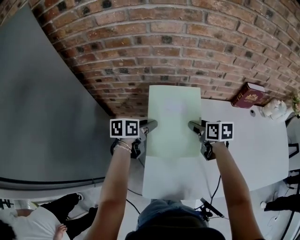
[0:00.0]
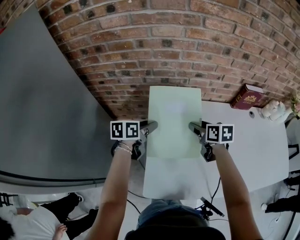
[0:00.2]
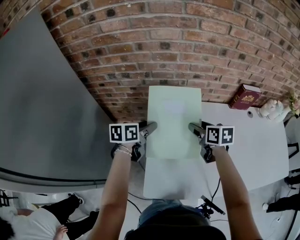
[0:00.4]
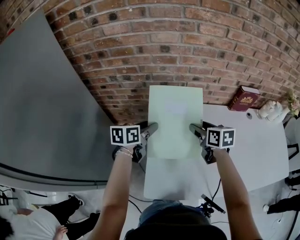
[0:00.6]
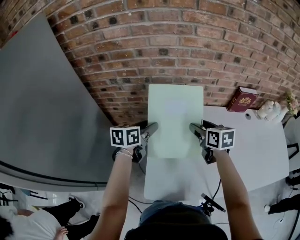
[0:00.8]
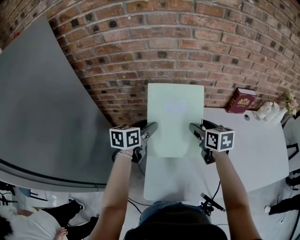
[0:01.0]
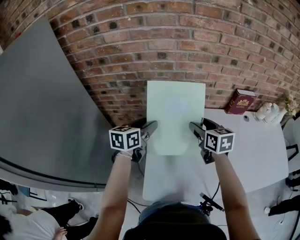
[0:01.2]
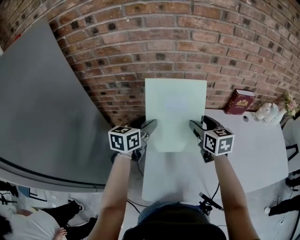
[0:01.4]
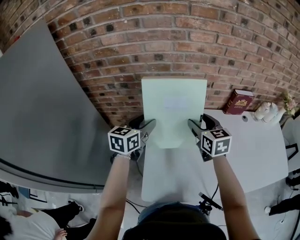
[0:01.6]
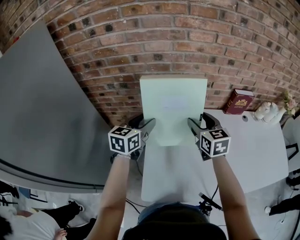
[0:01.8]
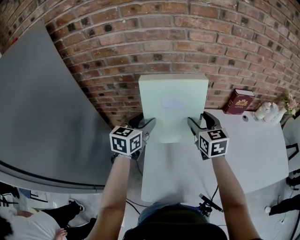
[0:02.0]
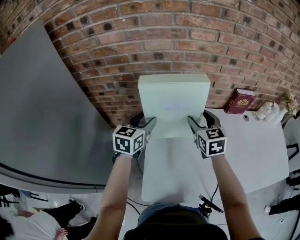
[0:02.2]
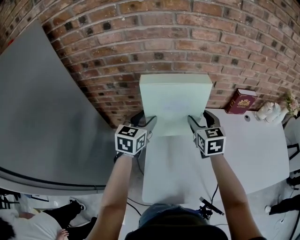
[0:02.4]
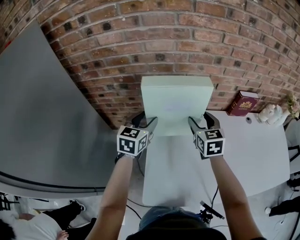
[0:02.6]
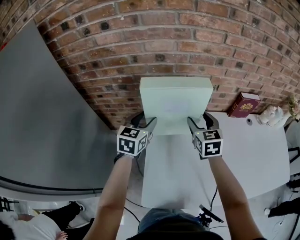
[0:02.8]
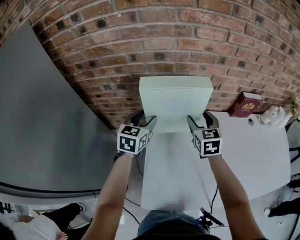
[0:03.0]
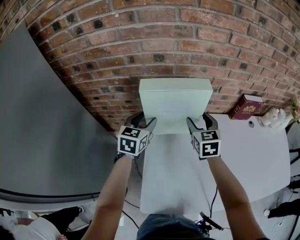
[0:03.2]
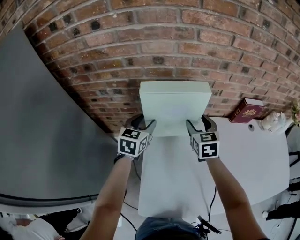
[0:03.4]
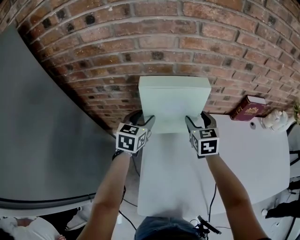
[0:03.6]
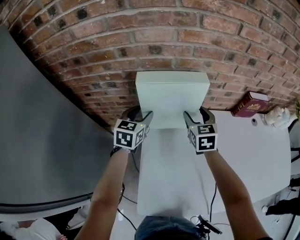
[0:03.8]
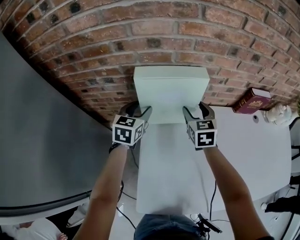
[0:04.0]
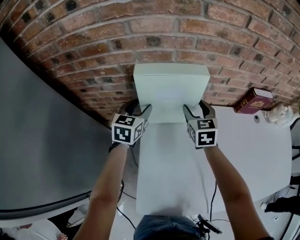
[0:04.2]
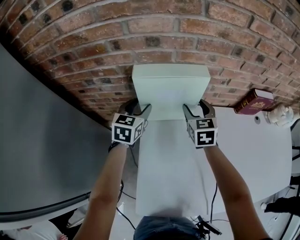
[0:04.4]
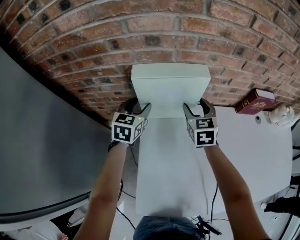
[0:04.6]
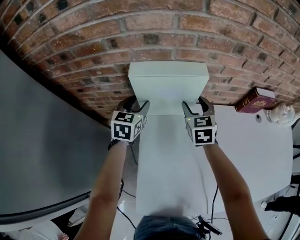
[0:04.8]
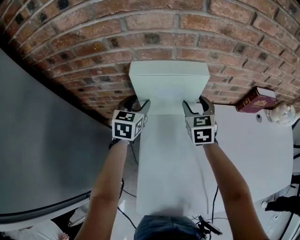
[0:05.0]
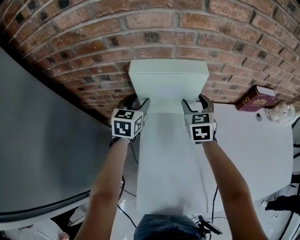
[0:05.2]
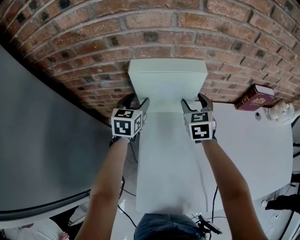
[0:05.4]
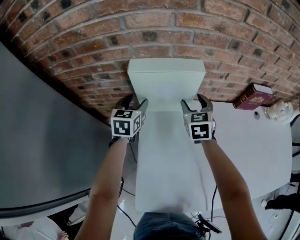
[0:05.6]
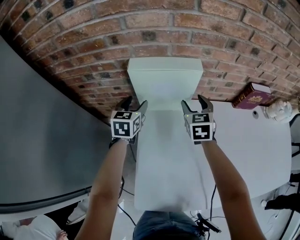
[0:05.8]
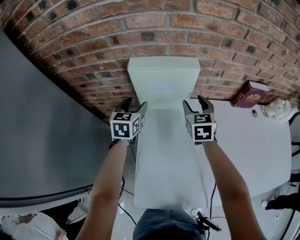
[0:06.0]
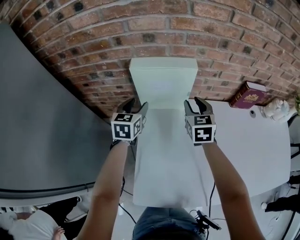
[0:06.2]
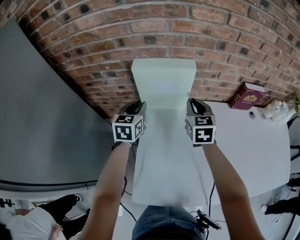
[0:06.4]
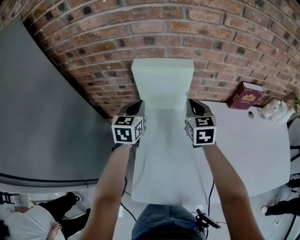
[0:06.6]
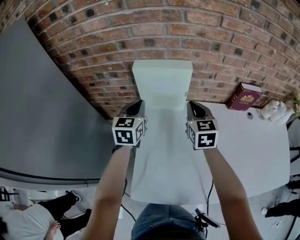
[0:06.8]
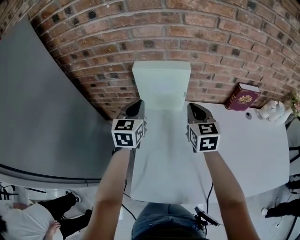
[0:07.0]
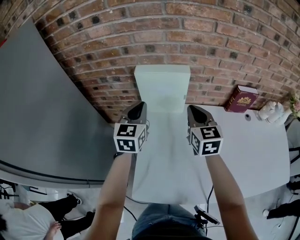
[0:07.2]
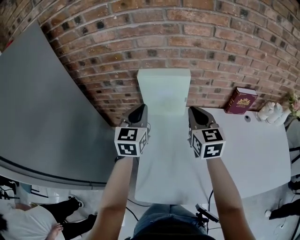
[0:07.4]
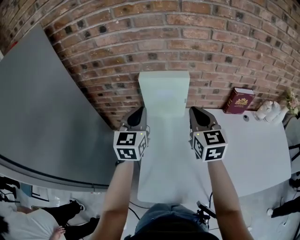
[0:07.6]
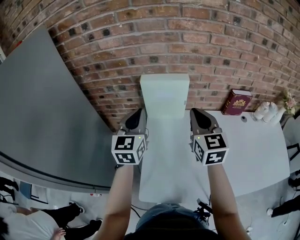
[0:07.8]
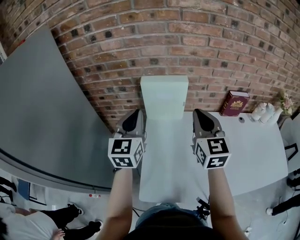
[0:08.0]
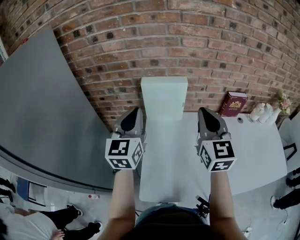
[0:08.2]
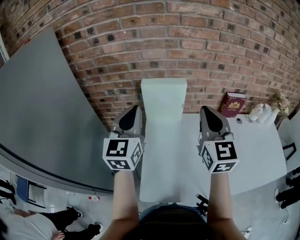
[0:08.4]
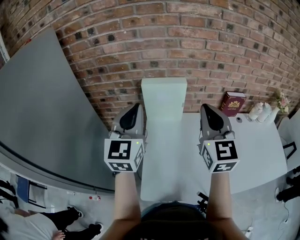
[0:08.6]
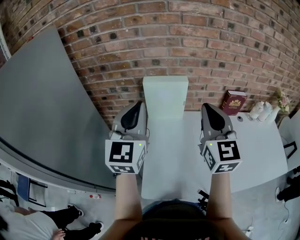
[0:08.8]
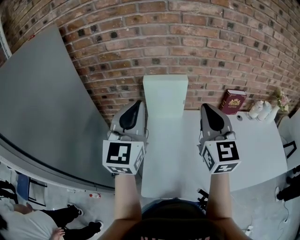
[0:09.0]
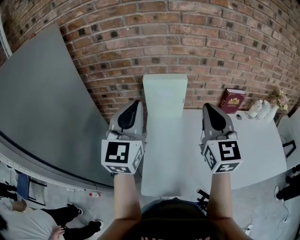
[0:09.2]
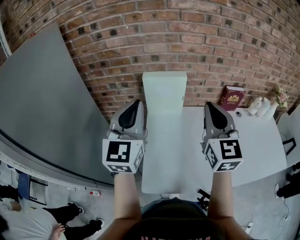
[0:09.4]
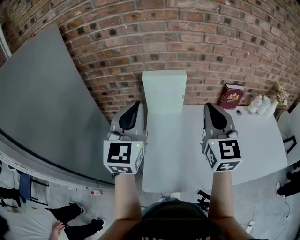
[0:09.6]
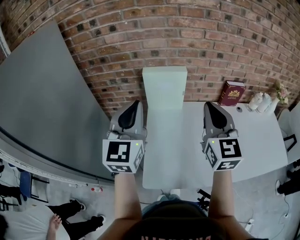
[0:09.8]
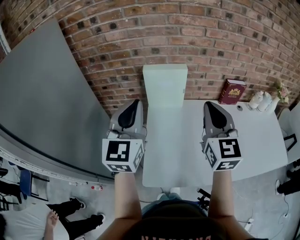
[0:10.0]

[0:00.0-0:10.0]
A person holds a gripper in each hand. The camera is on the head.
0:00.0 to 0:01.4: The two grippers go about 10 cm upward. The right gripper changes its angle by about 30 degrees. The left gripper changes its angle by roughly 30 degrees.
0:01.4 to 0:02.8: The grippers both shift forward by approximately 5 cm.
0:02.8 to 0:04.2: The two grippers go about 15 cm forward and downward.
0:04.2 to 0:05.8: The grippers move only a little.
0:05.8 to 0:07.2: Both grippers travel together upward and backward, some 15 cm. The left gripper closes; the right gripper closes up.
0:07.2 to 0:08.6: Both grippers travel together upward and backward, about 20 cm. The right gripper swivels some 20 degrees.
0:08.6 to 0:10.0: The left gripper moves backward, some 5 cm. The right gripper shifts by roughly 5 cm.

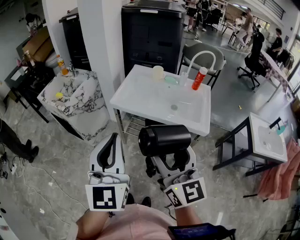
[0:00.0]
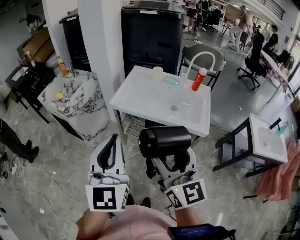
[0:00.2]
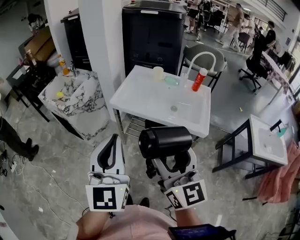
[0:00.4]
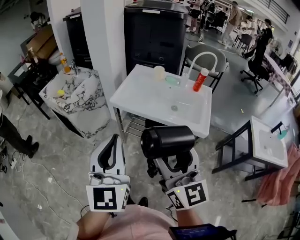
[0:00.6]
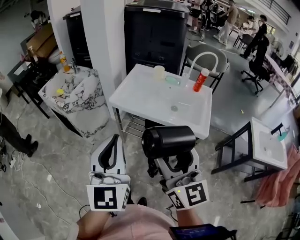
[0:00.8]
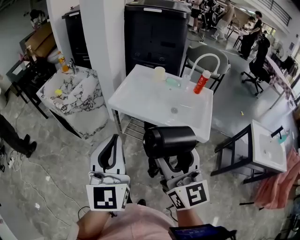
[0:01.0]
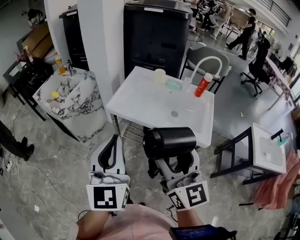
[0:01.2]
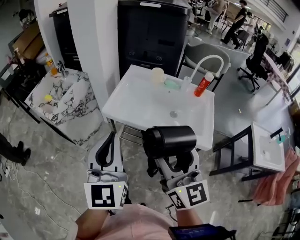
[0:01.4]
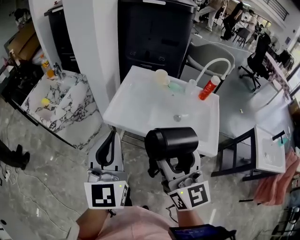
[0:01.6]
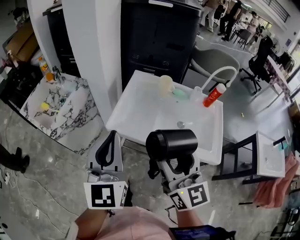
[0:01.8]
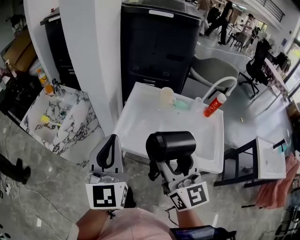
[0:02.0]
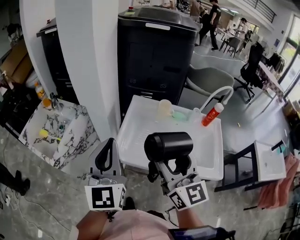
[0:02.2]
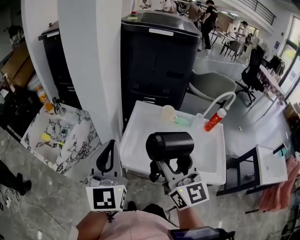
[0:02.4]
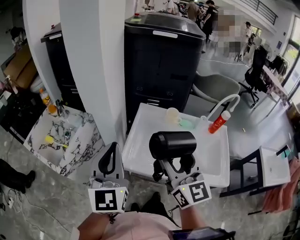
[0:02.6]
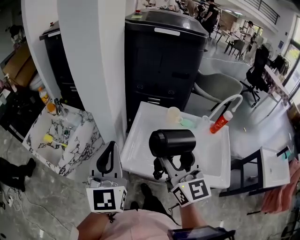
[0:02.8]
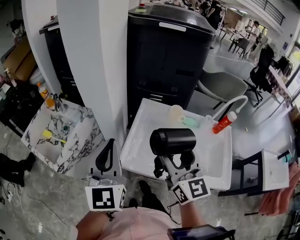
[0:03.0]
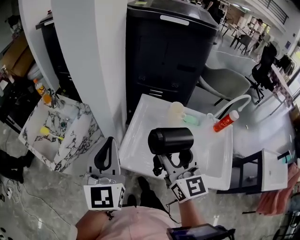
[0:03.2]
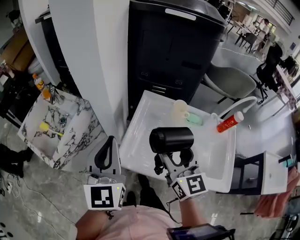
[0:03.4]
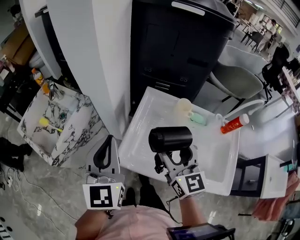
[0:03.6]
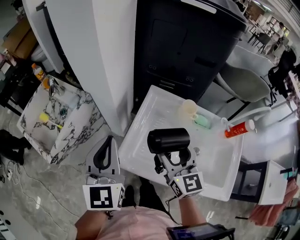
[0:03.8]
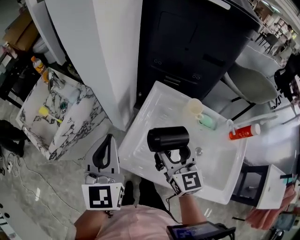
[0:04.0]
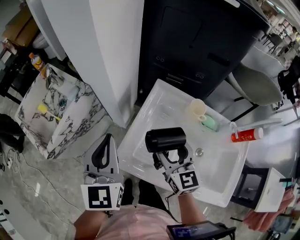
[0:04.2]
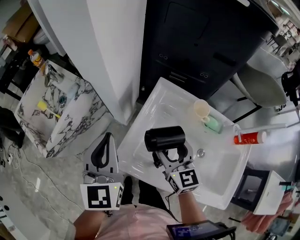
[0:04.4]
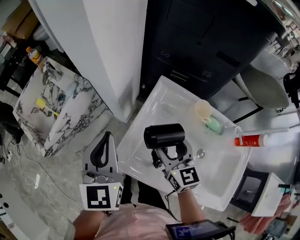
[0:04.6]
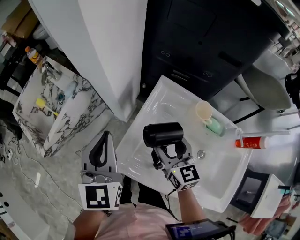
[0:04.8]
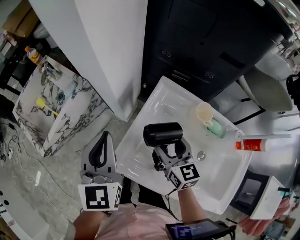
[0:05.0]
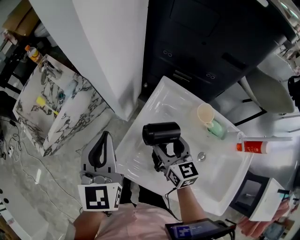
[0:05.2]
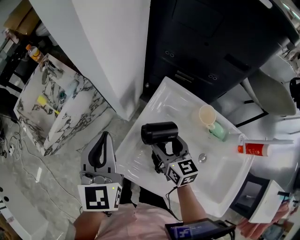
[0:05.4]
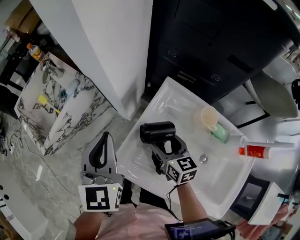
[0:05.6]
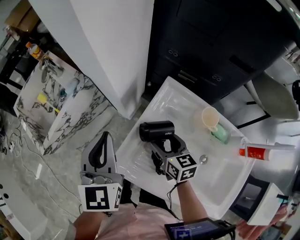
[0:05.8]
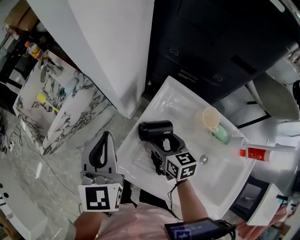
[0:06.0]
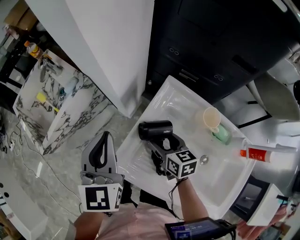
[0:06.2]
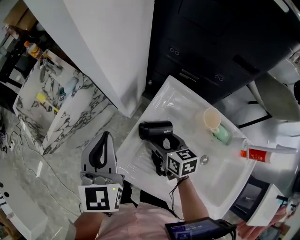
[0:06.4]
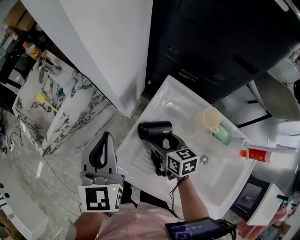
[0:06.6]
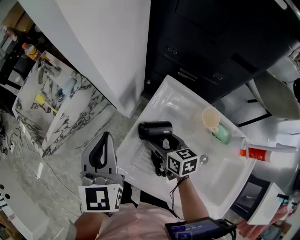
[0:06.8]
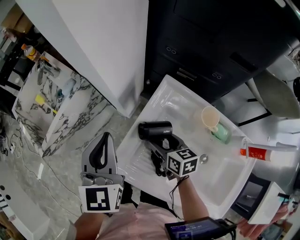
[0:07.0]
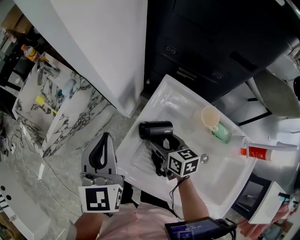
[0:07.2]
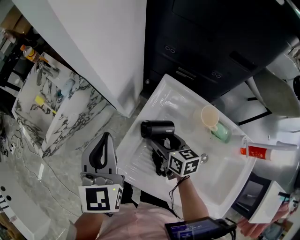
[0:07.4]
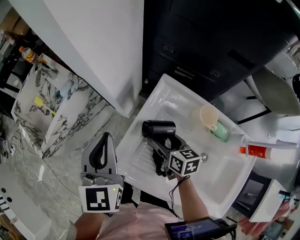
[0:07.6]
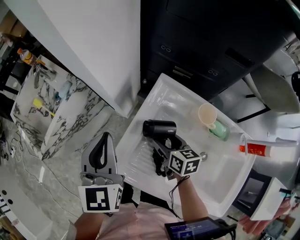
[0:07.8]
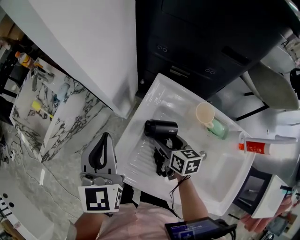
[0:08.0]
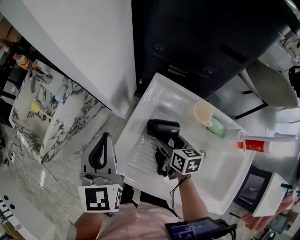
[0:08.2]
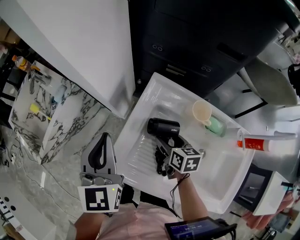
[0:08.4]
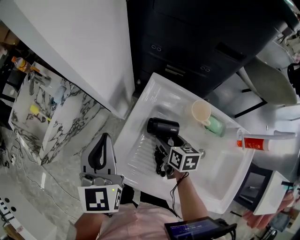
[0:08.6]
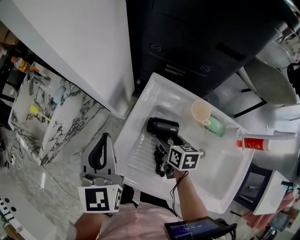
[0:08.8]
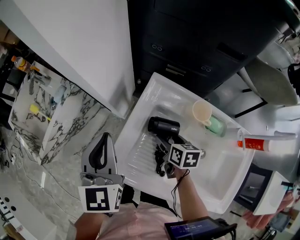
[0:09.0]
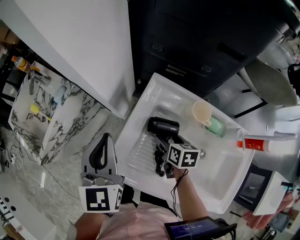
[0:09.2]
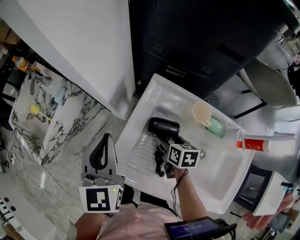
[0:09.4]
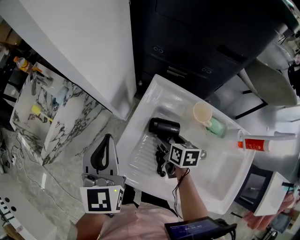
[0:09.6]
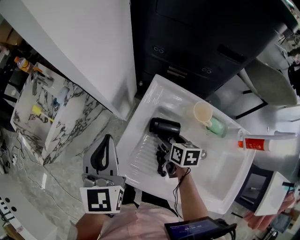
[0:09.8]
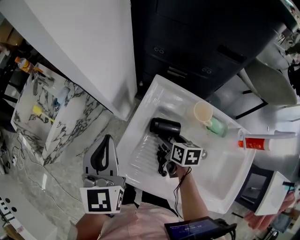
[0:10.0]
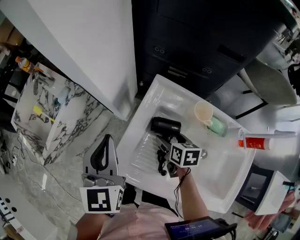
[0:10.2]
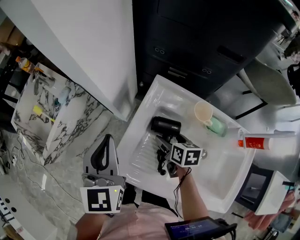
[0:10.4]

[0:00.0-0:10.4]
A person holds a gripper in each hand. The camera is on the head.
0:00.0 to 0:01.4: Both grippers move forward, approximately 10 cm.
0:01.4 to 0:03.0: Both grippers move forward, roughly 30 cm.
0:03.0 to 0:04.4: The right gripper goes about 25 cm downward and forward, and changes its angle by roughly 30 degrees. The left gripper moves downward and forward, approximately 15 cm.
0:04.4 to 0:06.0: The right gripper moves downward and forward, approximately 10 cm, and turns by roughly 30 degrees.
0:06.0 to 0:07.4: The grippers move only a little.
0:07.4 to 0:09.0: The right gripper goes about 5 cm to the right.
0:09.0 to 0:10.4: The grippers make only small movements.

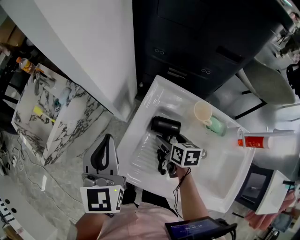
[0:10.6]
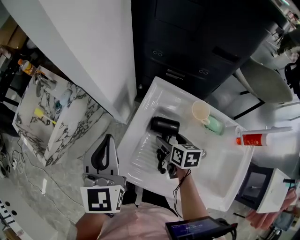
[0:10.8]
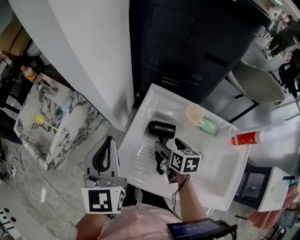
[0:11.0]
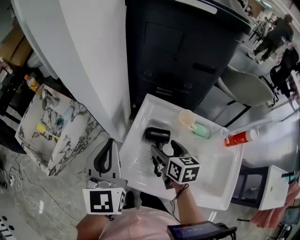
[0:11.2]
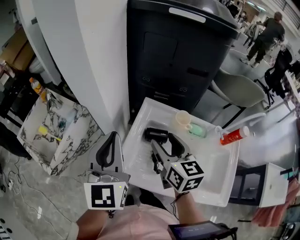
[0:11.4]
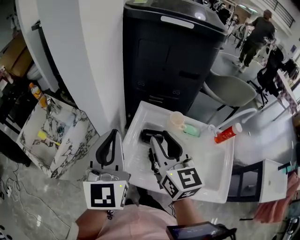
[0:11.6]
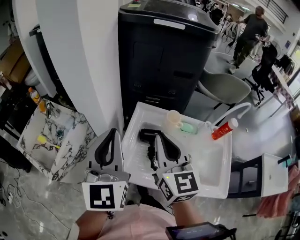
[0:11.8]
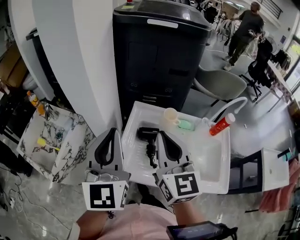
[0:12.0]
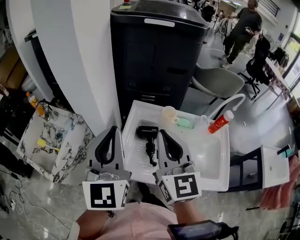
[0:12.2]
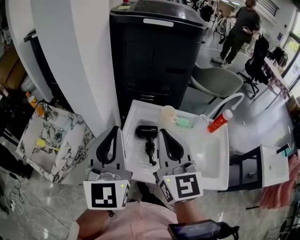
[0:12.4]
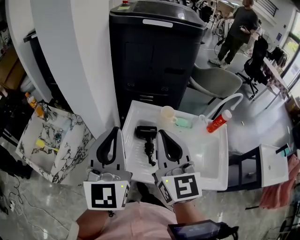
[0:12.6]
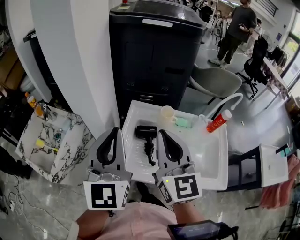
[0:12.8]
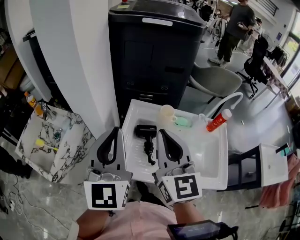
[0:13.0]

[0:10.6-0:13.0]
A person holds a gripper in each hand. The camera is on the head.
0:10.6 to 0:11.8: The left gripper moves upward and backward, approximately 20 cm, and changes its angle by roughly 20 degrees; the right gripper is displaced upward by roughly 35 cm, tips its fingers upward by roughly 40 degrees, and closes up.
0:11.8 to 0:13.0: The right gripper moves approximately 5 cm.

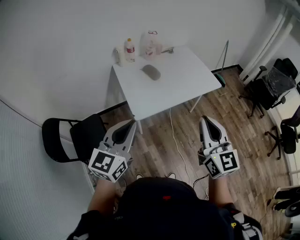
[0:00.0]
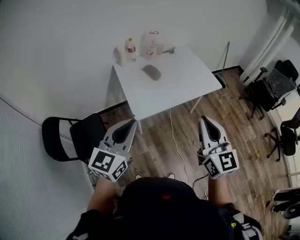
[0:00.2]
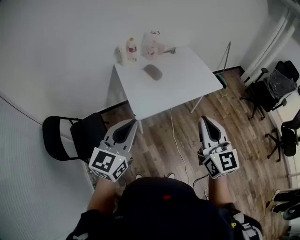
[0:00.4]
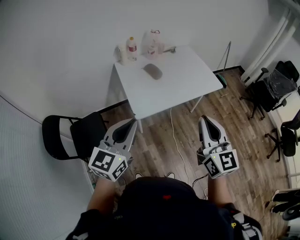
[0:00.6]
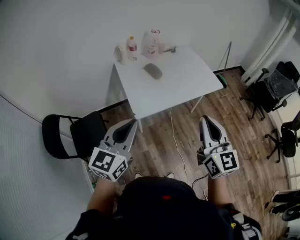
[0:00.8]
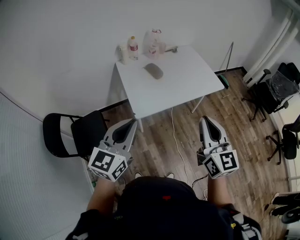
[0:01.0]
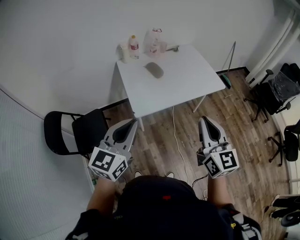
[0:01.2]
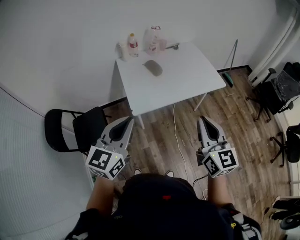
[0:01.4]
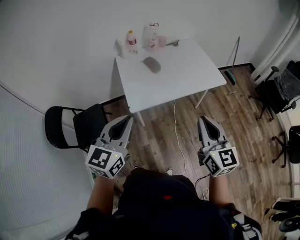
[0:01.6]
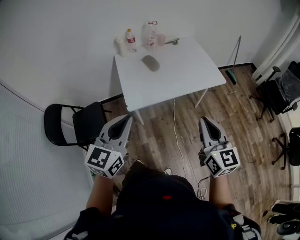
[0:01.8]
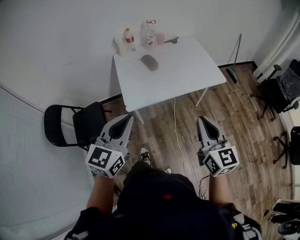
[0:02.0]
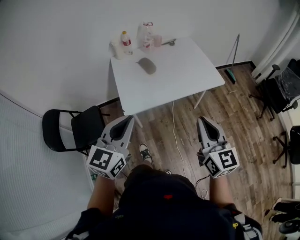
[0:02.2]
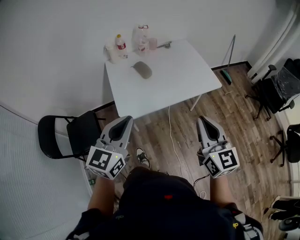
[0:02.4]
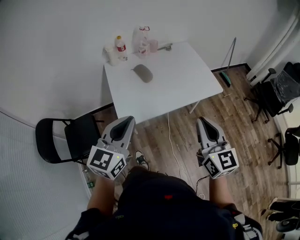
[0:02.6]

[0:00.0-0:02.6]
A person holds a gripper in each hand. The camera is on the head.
0:00.0 to 0:01.2: The grippers move only a little.
0:01.2 to 0:02.6: Both grippers move forward and to the right, approximately 15 cm.
